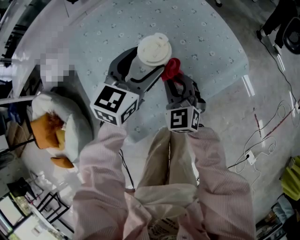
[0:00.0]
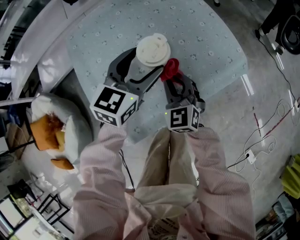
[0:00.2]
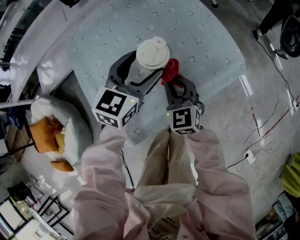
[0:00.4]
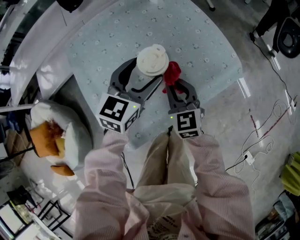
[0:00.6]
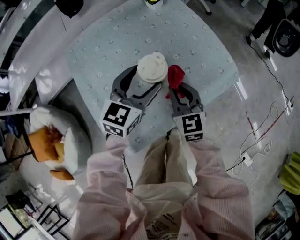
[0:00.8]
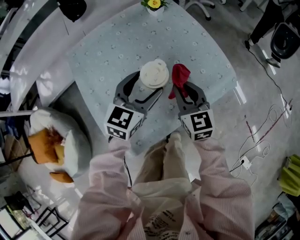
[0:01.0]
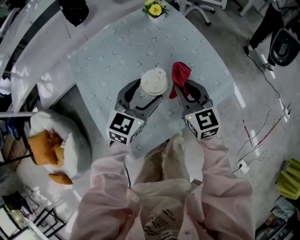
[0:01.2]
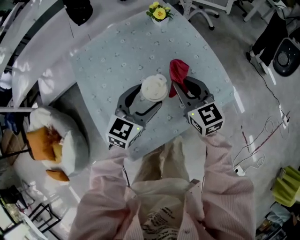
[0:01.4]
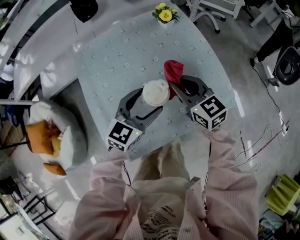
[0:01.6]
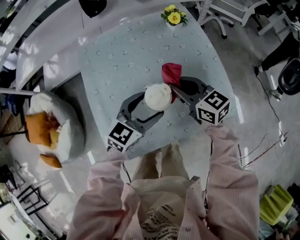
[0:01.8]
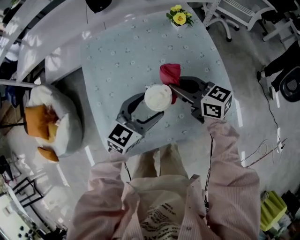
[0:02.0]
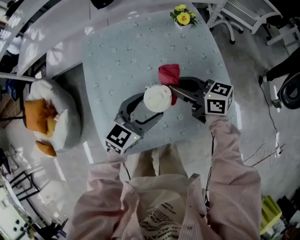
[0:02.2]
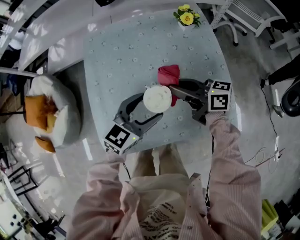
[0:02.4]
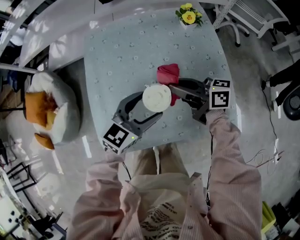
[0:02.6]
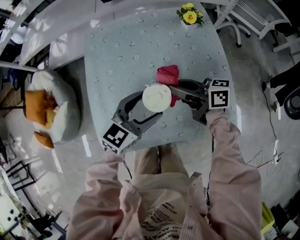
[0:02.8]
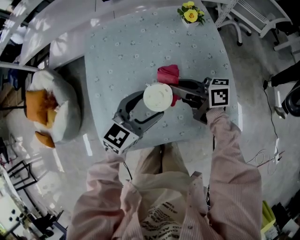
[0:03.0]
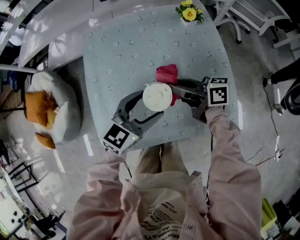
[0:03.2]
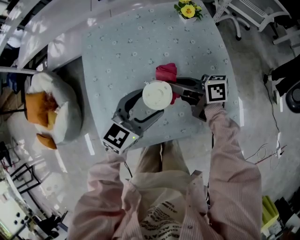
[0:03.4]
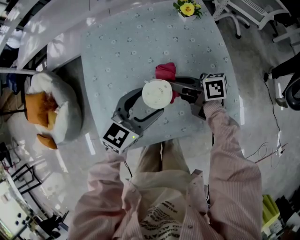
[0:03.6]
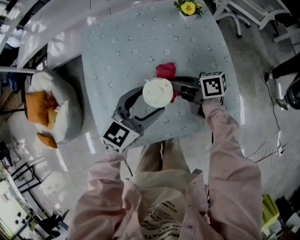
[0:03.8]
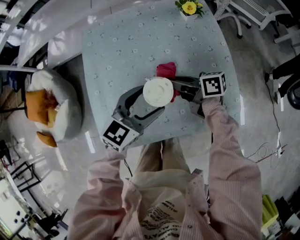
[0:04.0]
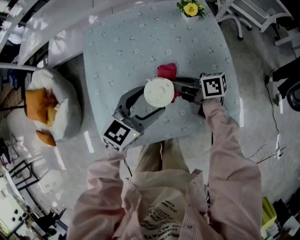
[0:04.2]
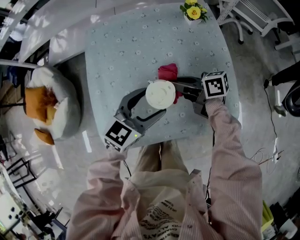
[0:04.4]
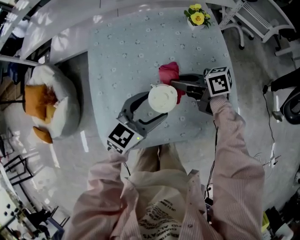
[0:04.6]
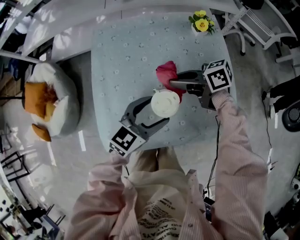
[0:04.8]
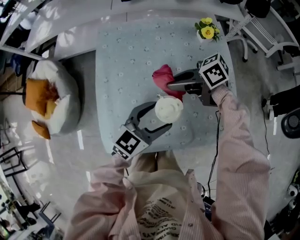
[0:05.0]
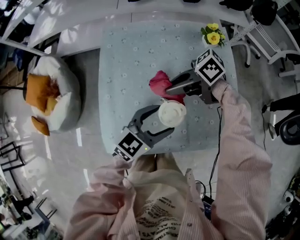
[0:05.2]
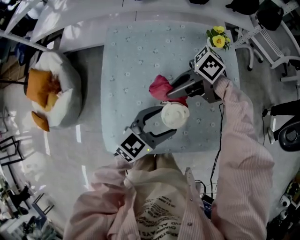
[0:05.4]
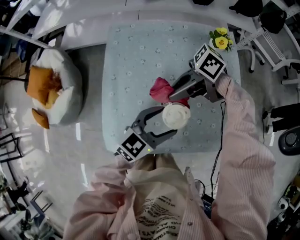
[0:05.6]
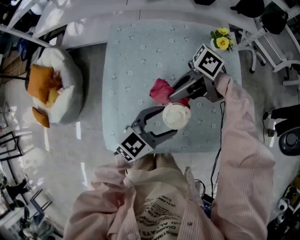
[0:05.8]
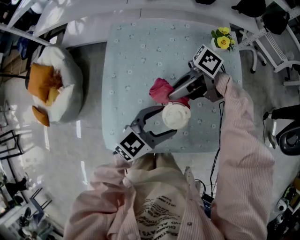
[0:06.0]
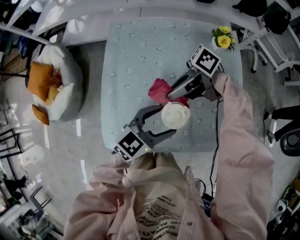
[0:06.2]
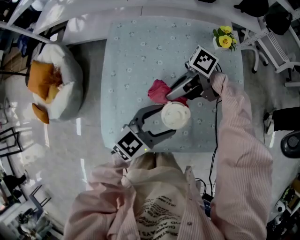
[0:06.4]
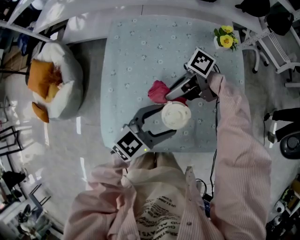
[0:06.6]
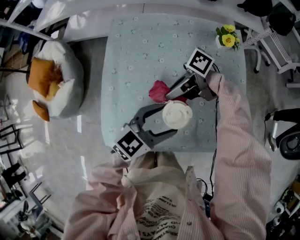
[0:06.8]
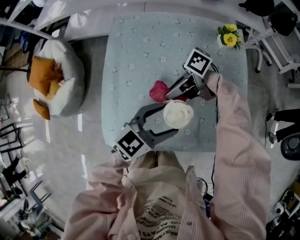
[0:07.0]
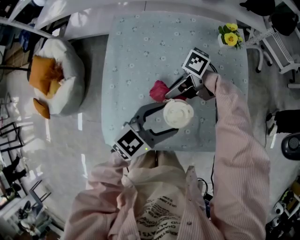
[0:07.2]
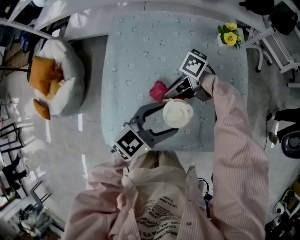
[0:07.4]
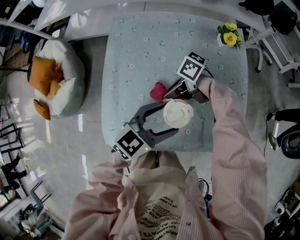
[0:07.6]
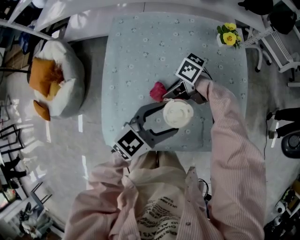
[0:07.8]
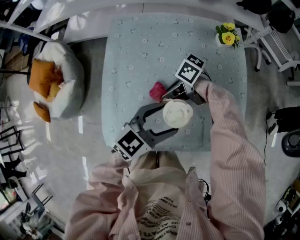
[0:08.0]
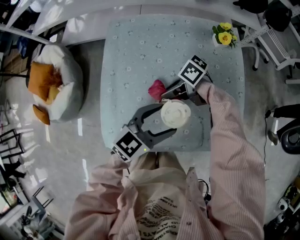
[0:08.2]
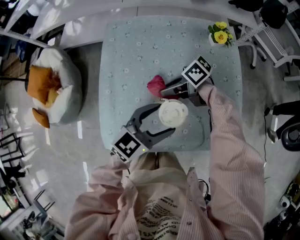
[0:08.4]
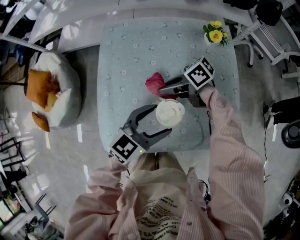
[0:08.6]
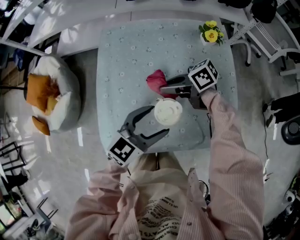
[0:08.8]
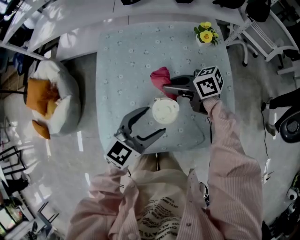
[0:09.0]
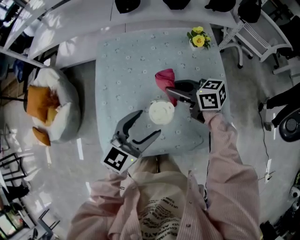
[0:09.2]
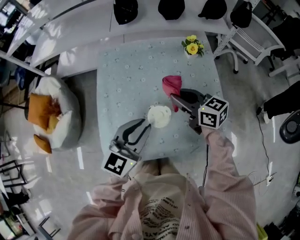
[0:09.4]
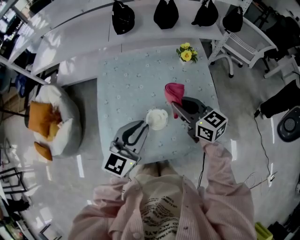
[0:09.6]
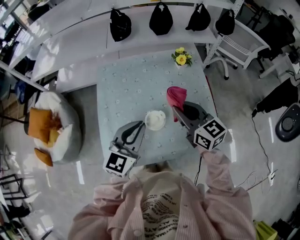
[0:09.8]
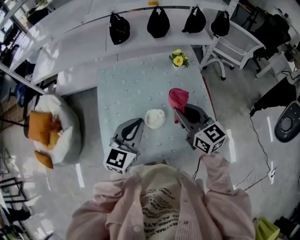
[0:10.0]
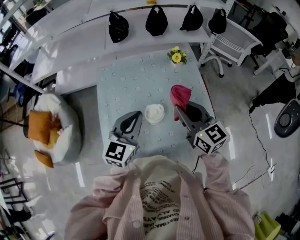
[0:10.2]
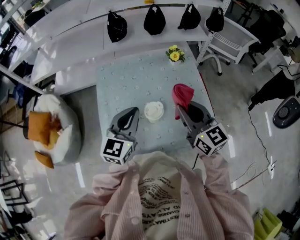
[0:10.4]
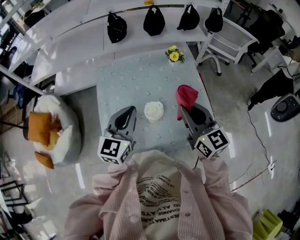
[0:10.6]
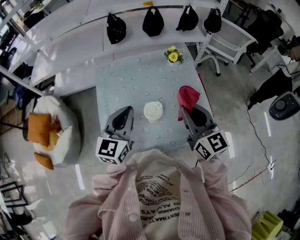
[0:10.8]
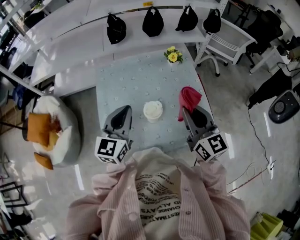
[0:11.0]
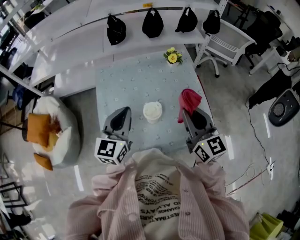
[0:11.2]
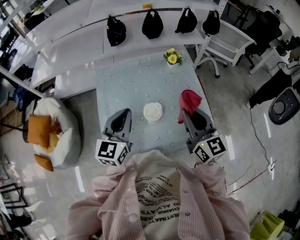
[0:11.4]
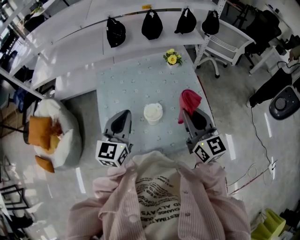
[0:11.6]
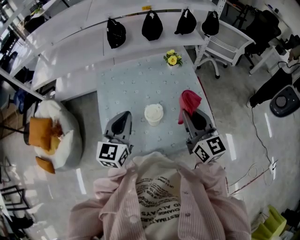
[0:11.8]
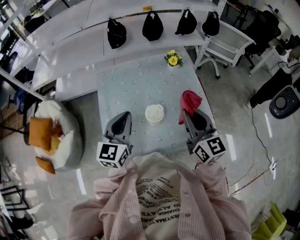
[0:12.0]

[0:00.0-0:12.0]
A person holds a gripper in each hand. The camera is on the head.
0:00.0 to 0:01.6: The right gripper is displaced upward and forward by roughly 15 cm, and changes its angle by some 30 degrees.
0:01.6 to 0:03.0: The right gripper rotates approximately 60 degrees.
0:03.0 to 0:04.4: There are only small adjustments of the grippers.
0:04.4 to 0:06.0: The right gripper changes place by about 10 cm, and turns by about 60 degrees.
0:06.0 to 0:07.6: The right gripper shifts approximately 10 cm downward.
0:07.6 to 0:09.0: The right gripper shifts about 10 cm upward, and rotates about 40 degrees.
0:09.0 to 0:10.4: The right gripper goes about 20 cm upward, and turns by about 60 degrees; the left gripper goes approximately 10 cm upward, and closes up.
0:10.4 to 0:12.0: The grippers move only a little.

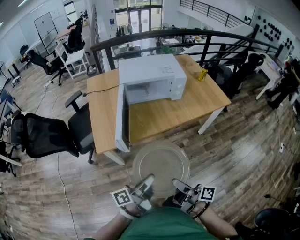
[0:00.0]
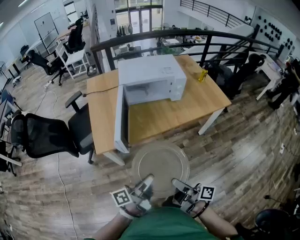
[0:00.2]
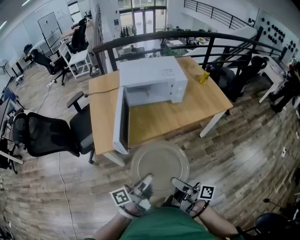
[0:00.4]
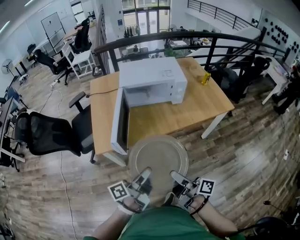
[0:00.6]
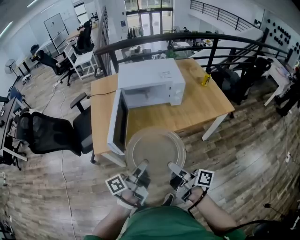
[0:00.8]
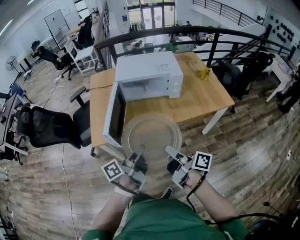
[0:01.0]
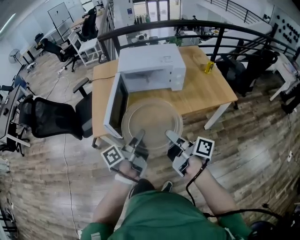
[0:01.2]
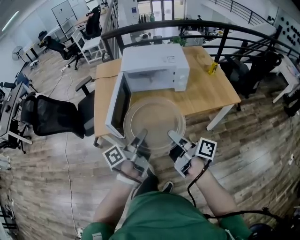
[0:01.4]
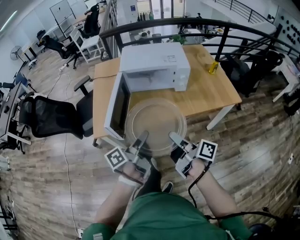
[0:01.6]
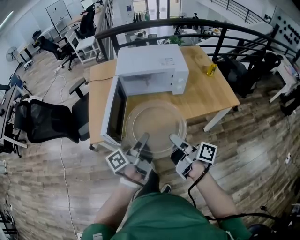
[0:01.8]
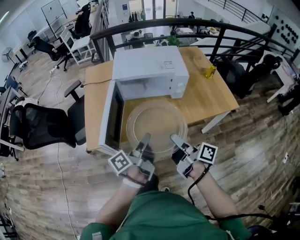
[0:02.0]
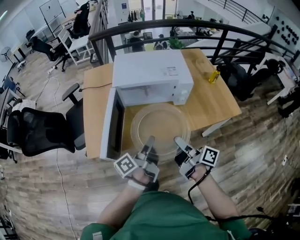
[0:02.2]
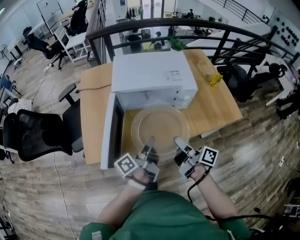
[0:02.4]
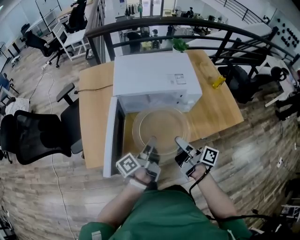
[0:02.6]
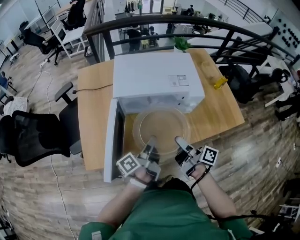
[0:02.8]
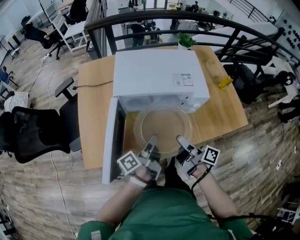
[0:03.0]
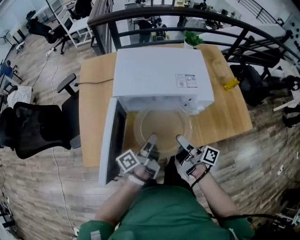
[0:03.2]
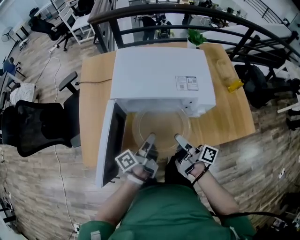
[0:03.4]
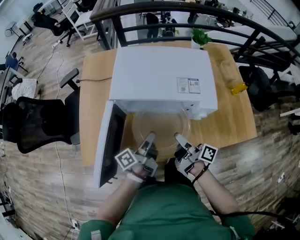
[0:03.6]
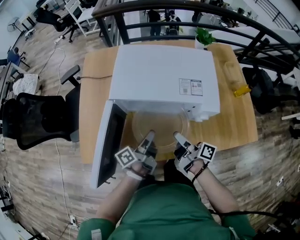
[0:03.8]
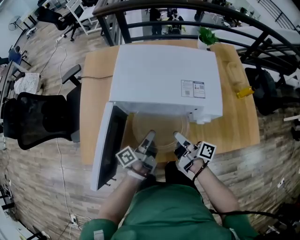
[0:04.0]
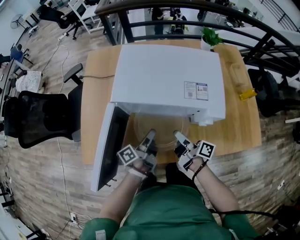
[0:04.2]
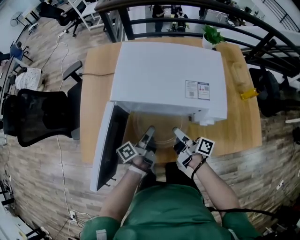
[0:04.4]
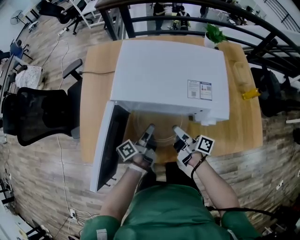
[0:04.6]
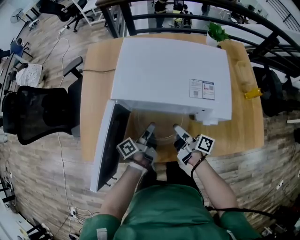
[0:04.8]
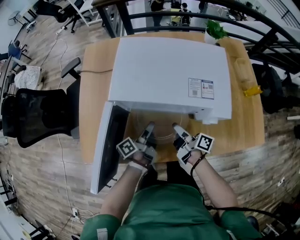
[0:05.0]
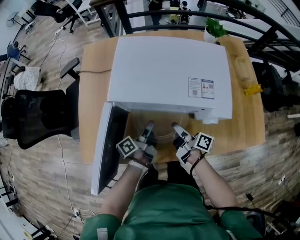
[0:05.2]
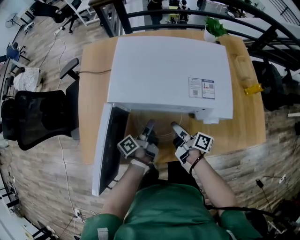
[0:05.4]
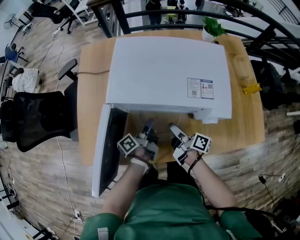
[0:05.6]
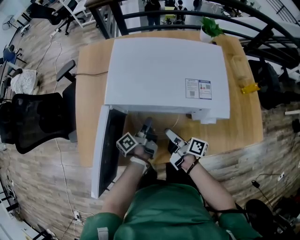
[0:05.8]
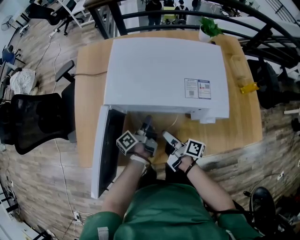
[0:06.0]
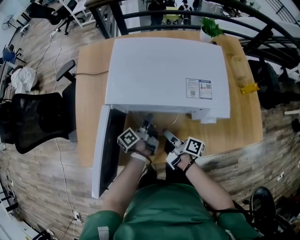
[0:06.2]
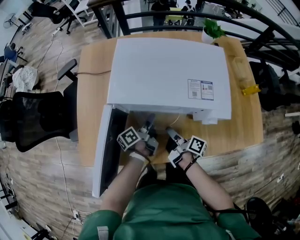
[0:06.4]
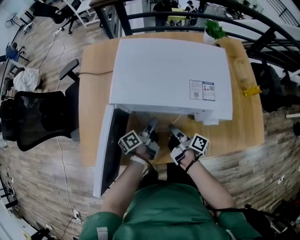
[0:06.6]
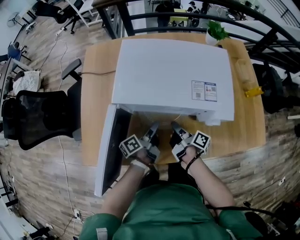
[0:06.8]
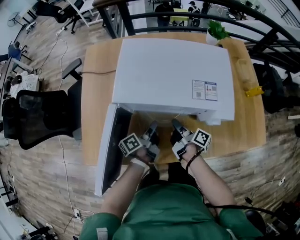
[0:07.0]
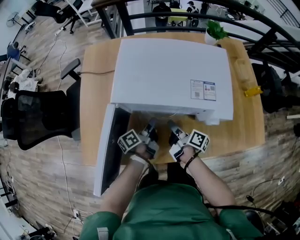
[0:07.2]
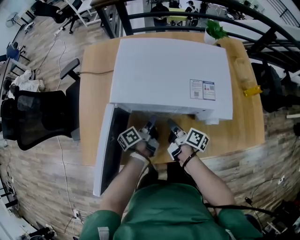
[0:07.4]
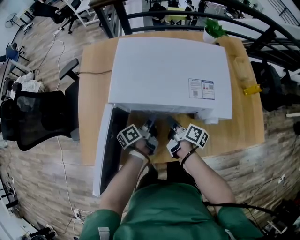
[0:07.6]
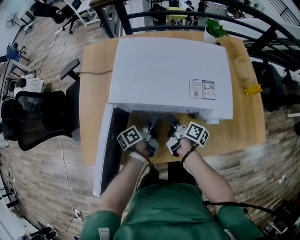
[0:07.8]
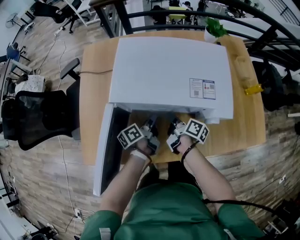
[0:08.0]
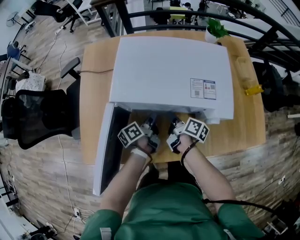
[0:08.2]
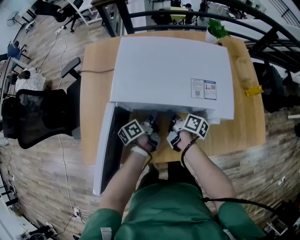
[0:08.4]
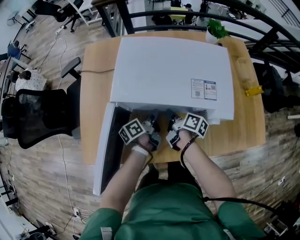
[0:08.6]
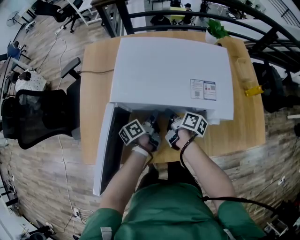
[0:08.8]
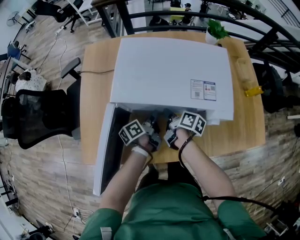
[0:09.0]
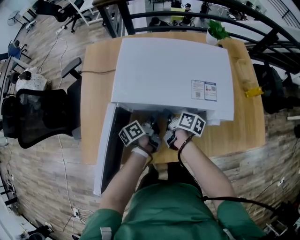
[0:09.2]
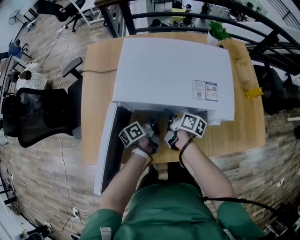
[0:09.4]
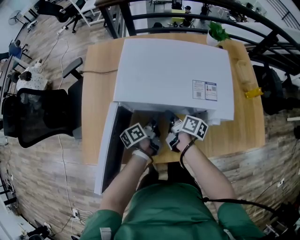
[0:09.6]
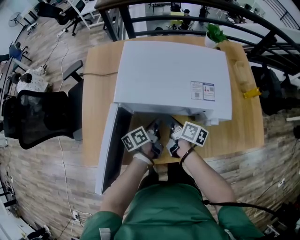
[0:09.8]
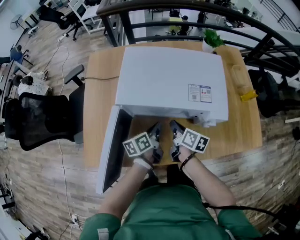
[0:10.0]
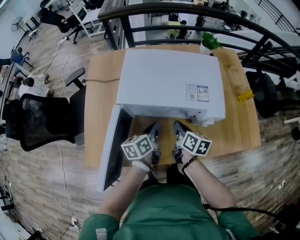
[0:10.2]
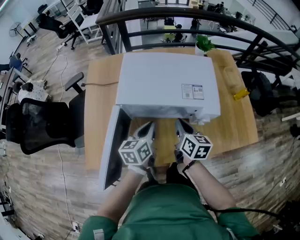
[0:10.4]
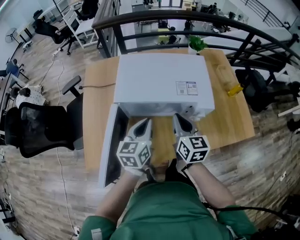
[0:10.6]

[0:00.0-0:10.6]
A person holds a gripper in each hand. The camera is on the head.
0:00.0 to 0:01.6: Both grippers move forward and to the right, roughly 20 cm.
0:01.6 to 0:03.0: Both grippers move forward, roughly 25 cm.
0:03.0 to 0:04.6: Both grippers move forward and downward, roughly 15 cm.
0:04.6 to 0:06.0: The left gripper moves approximately 5 cm; the right gripper moves about 5 cm, and opens.
0:06.0 to 0:07.6: The right gripper goes some 5 cm forward, and closes.
0:07.6 to 0:09.0: The grippers move only a little.
0:09.0 to 0:10.6: The left gripper goes some 20 cm upward and backward, and twists roughly 60 degrees clockwise, seen from behind; the right gripper goes approximately 20 cm upward, and twists about 50 degrees counterclockwise, seen from behind.

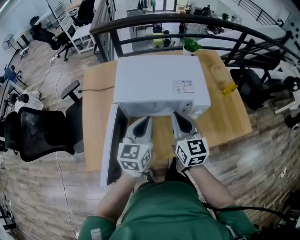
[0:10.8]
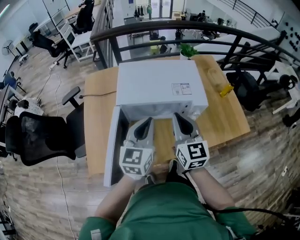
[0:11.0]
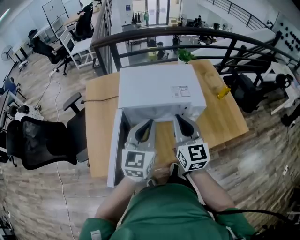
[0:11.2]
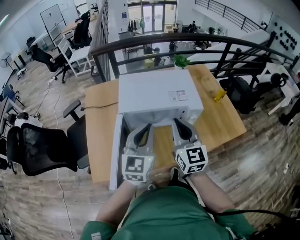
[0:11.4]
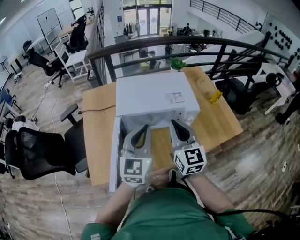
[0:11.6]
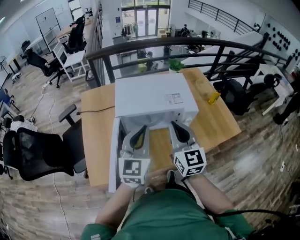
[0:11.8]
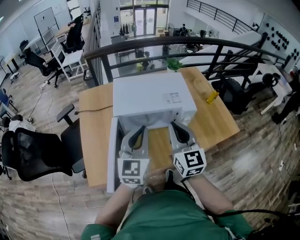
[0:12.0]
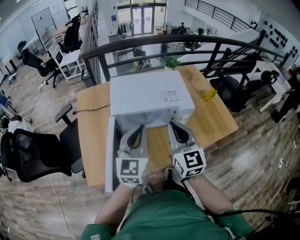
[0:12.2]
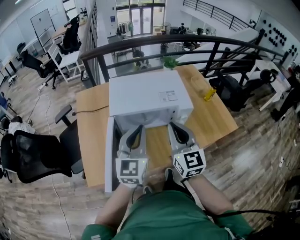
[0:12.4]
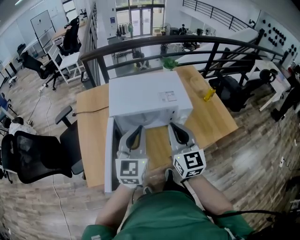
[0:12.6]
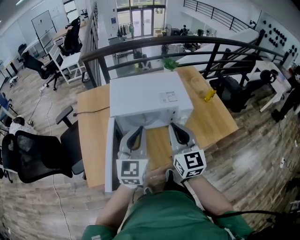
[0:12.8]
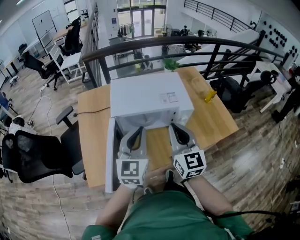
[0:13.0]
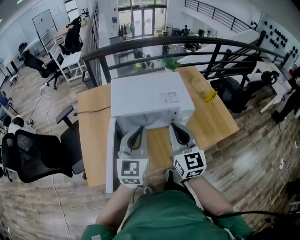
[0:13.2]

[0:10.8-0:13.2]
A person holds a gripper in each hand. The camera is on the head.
0:10.8 to 0:12.0: Both grippers move upward and backward, approximately 10 cm.
0:12.0 to 0:13.2: The grippers stay close to where they were, moving slightly.
